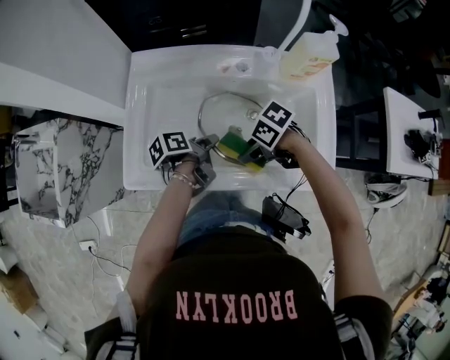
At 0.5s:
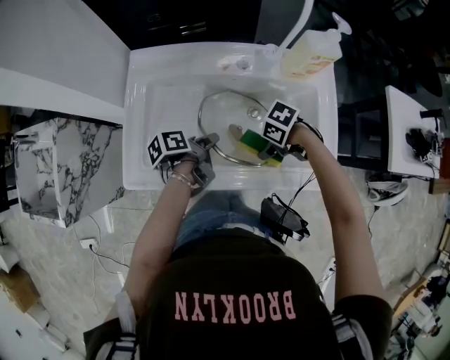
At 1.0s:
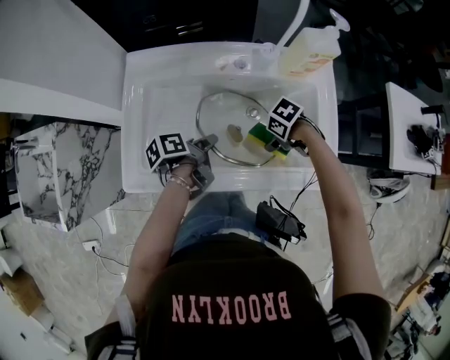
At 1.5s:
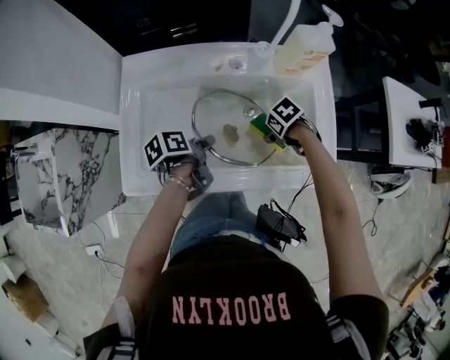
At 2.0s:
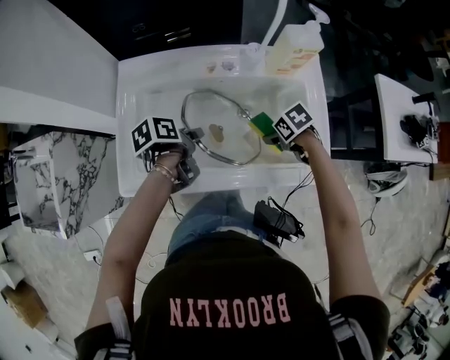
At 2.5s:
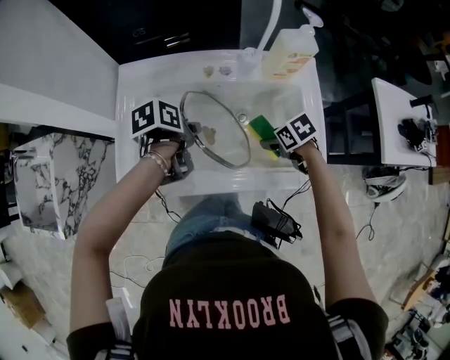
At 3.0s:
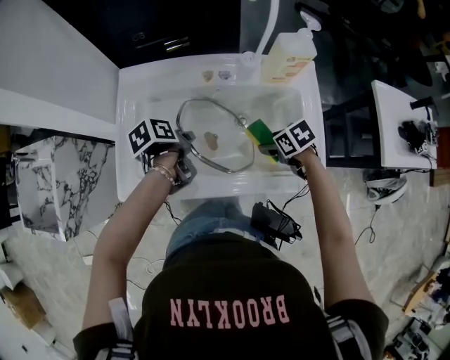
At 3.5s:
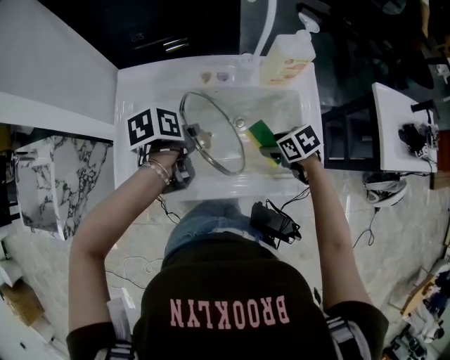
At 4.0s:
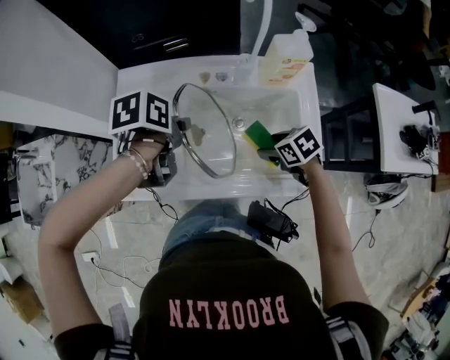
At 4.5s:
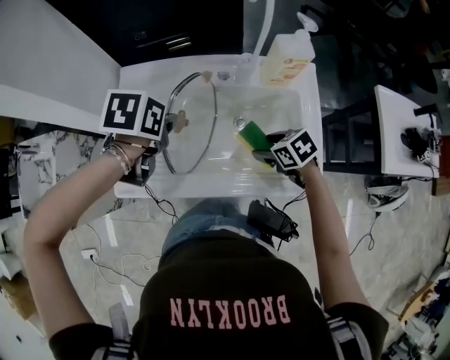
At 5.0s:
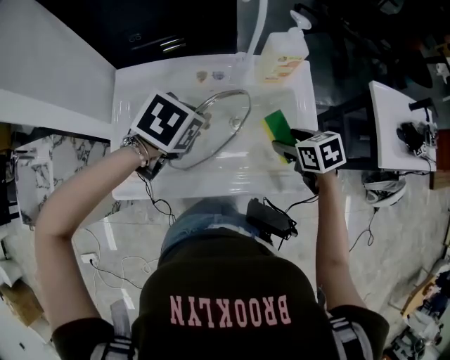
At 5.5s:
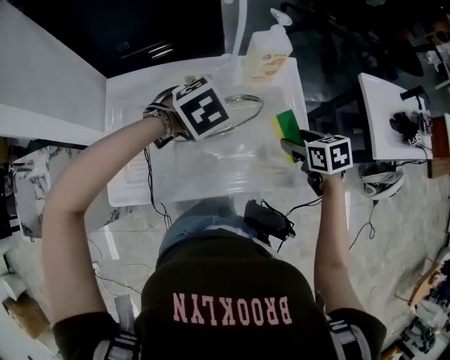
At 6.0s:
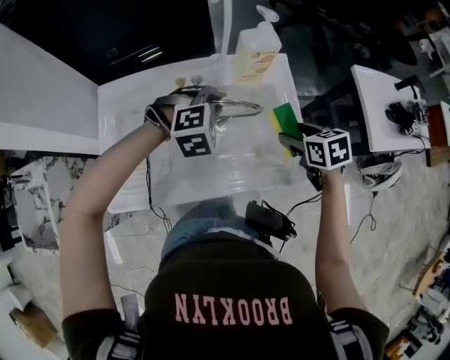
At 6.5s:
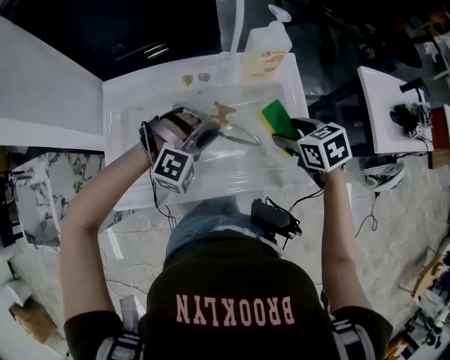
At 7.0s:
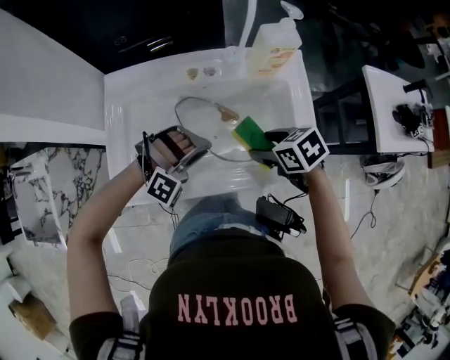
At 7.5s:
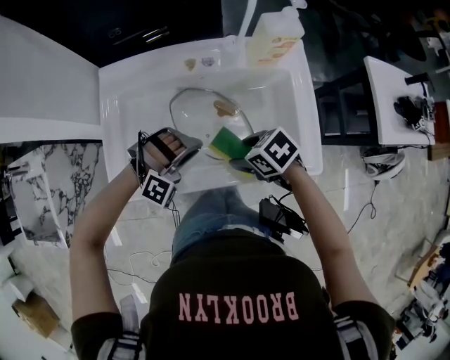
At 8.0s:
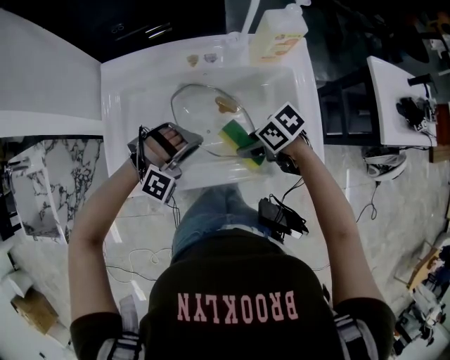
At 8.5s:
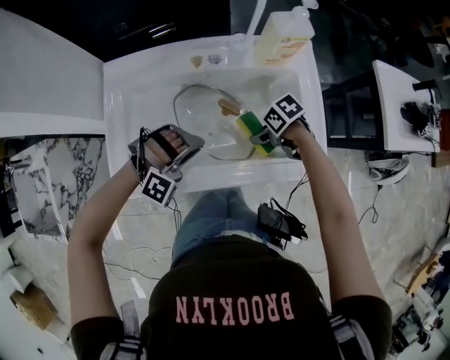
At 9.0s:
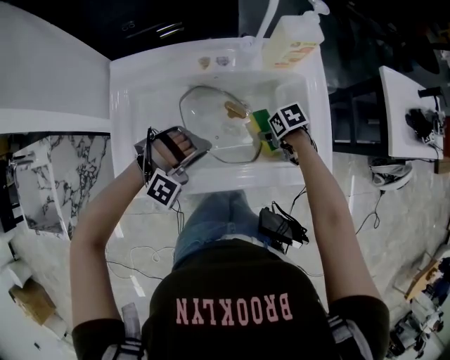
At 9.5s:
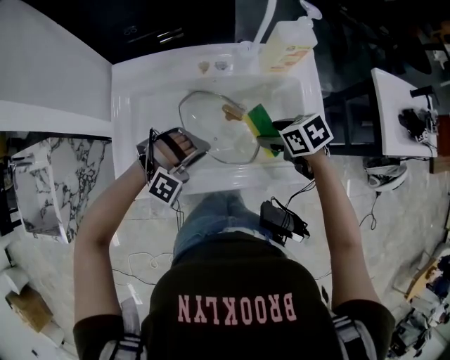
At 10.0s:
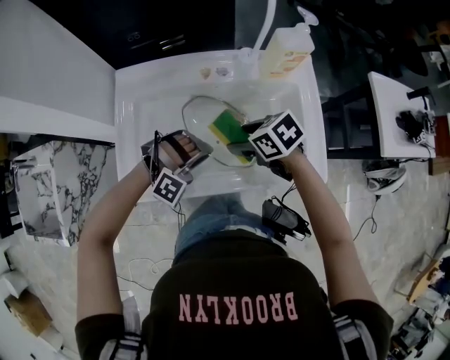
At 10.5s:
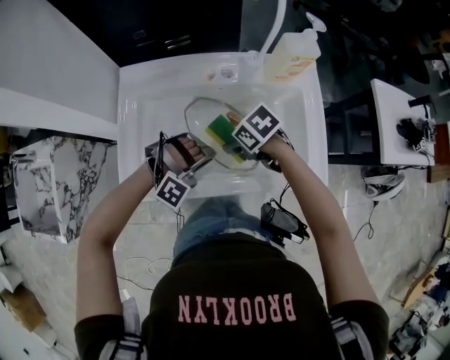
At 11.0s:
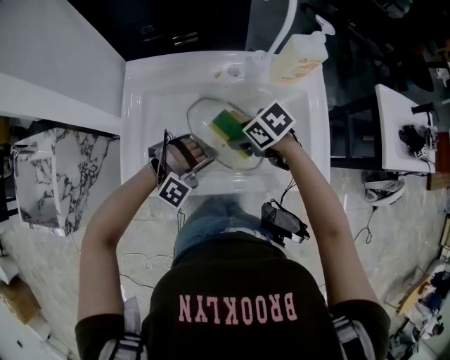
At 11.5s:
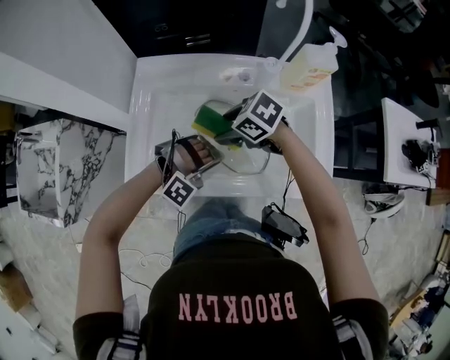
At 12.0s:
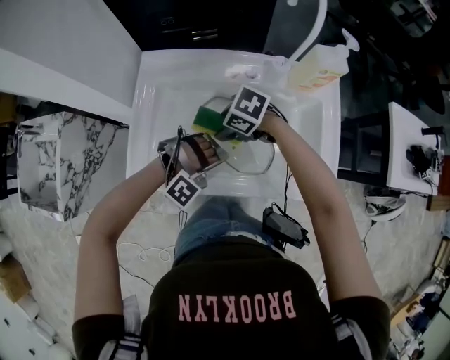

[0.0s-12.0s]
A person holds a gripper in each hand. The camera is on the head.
0.0s to 2.0s: The right gripper moves some 15 cm, and changes its angle by about 30 degrees.
2.0s to 4.0s: The right gripper moves upward, approximately 5 cm.
4.0s to 6.0s: The right gripper changes place by roughly 15 cm, and changes its angle by some 30 degrees.
6.0s to 8.0s: The right gripper ends up roughly 20 cm from where it was, and rotates some 40 degrees.
8.0s to 10.0s: The right gripper moves roughly 10 cm downward and comes back.
10.0s to 12.0s: The right gripper swings up and down, approximately 5 cm each way, with 2 reversals, and turns by approximately 40 degrees.

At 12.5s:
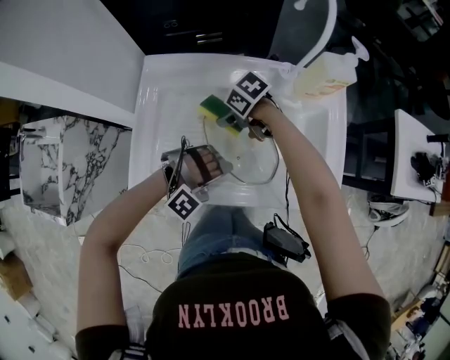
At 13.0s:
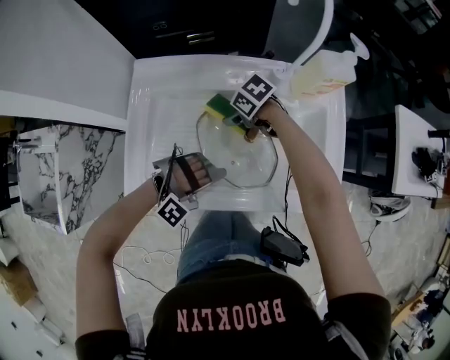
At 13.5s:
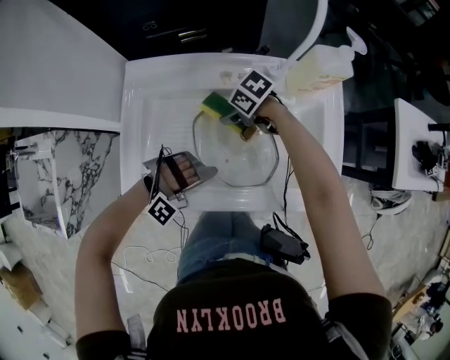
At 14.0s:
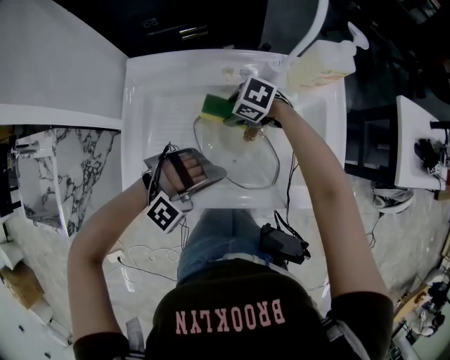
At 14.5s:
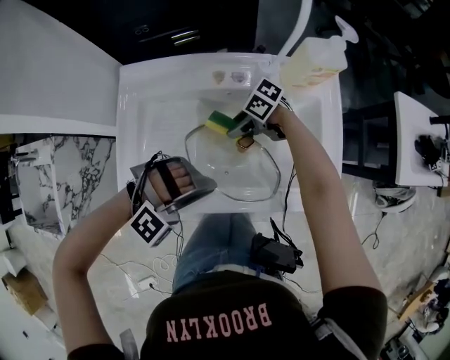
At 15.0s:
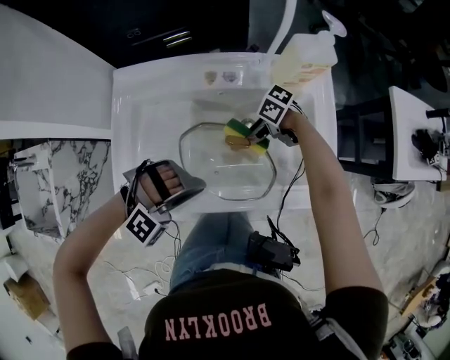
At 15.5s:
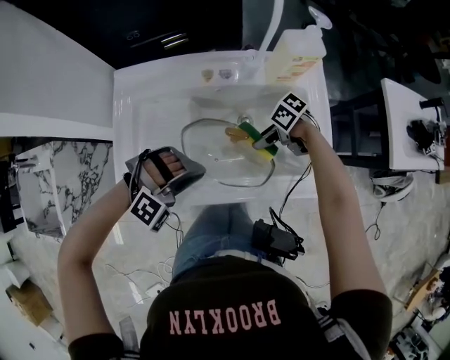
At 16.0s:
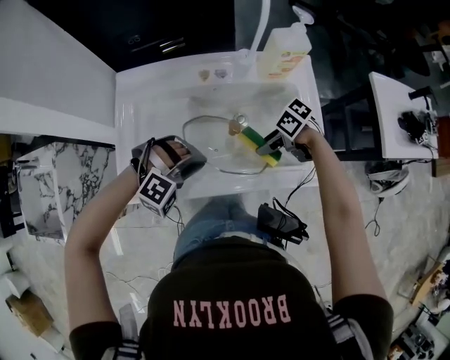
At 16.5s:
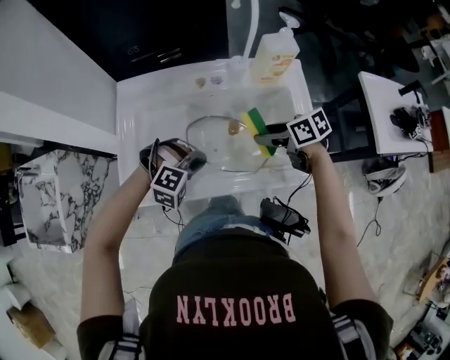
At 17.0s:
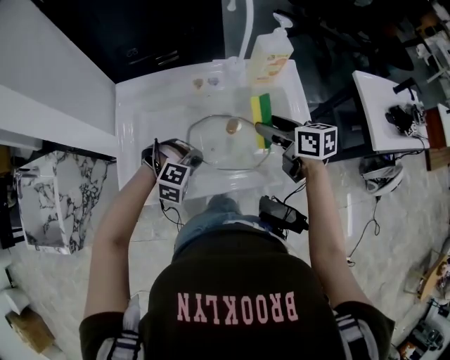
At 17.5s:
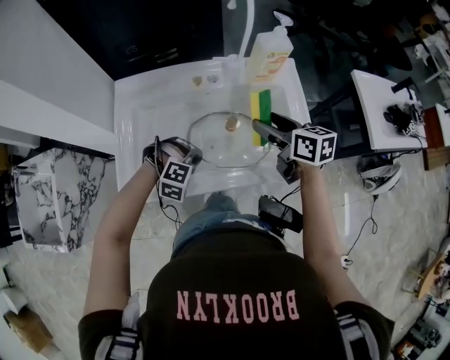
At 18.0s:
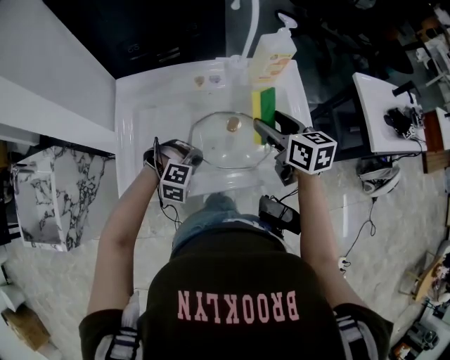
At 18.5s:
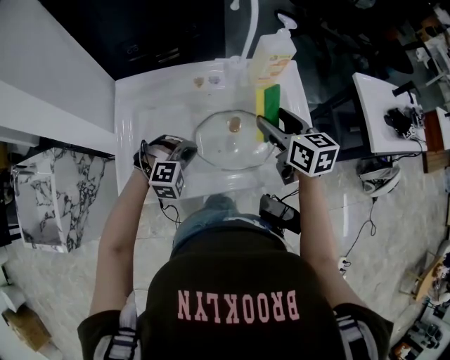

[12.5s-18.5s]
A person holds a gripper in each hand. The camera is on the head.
12.5s to 14.5s: The right gripper ends up about 10 cm from where it was.
14.5s to 16.5s: The right gripper changes place by roughly 20 cm, and swivels roughly 40 degrees.
16.5s to 18.5s: The right gripper travels upward by some 10 cm, and turns by some 40 degrees.

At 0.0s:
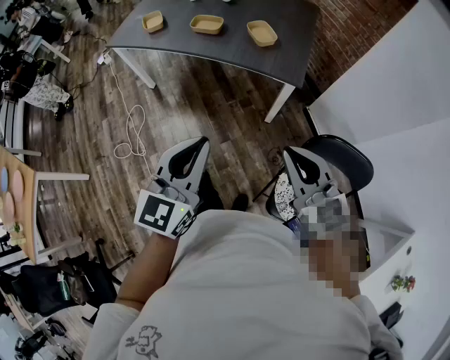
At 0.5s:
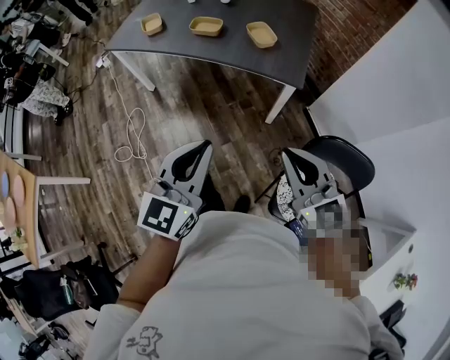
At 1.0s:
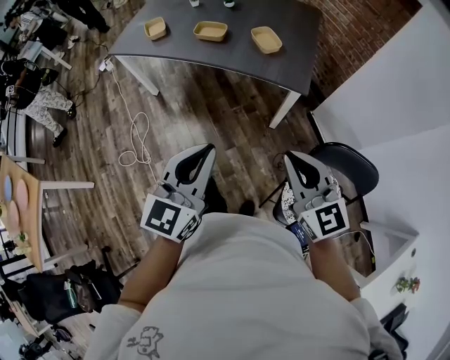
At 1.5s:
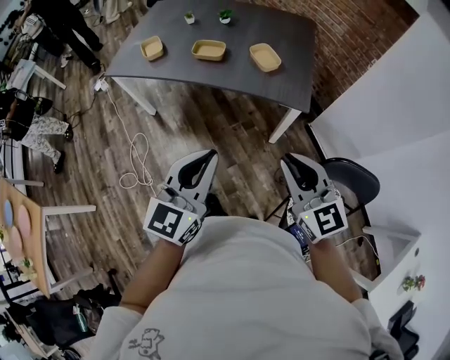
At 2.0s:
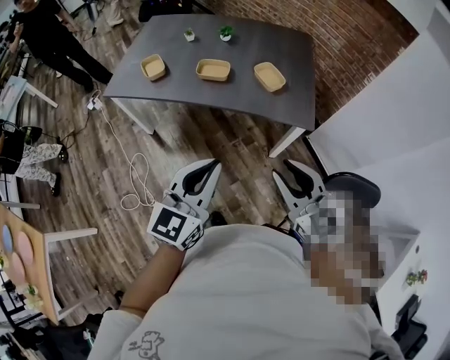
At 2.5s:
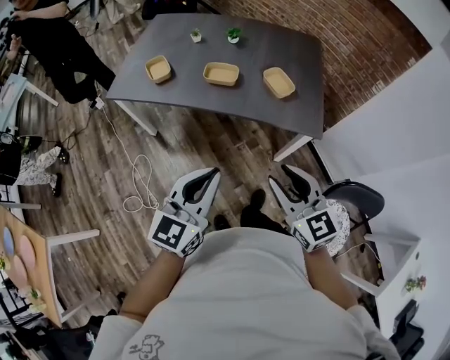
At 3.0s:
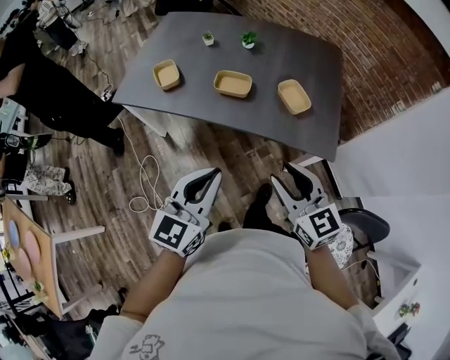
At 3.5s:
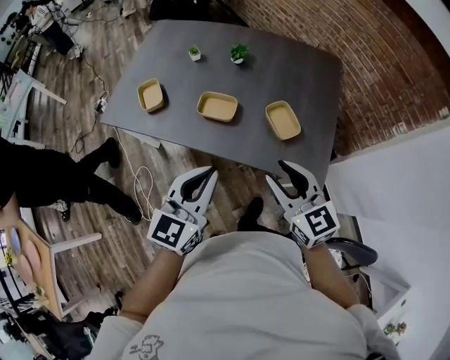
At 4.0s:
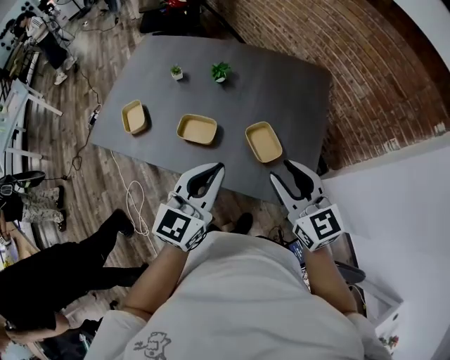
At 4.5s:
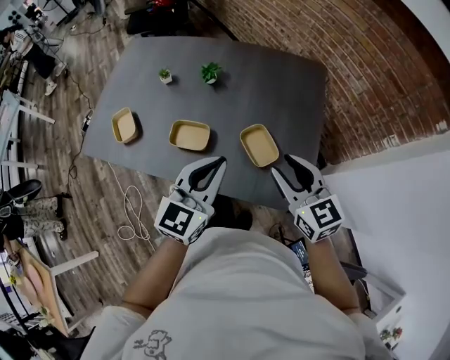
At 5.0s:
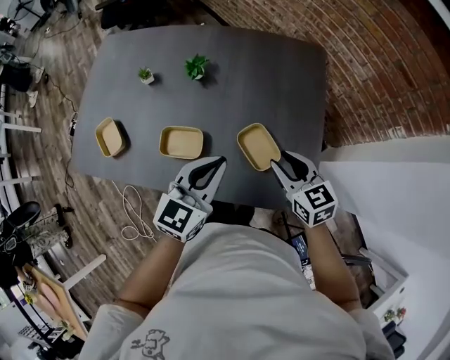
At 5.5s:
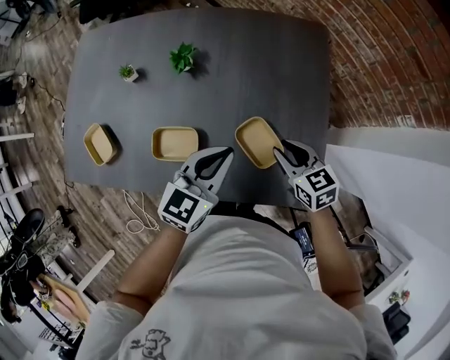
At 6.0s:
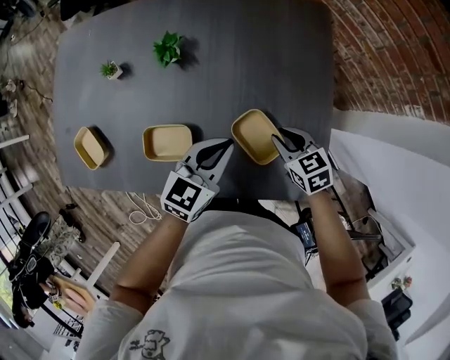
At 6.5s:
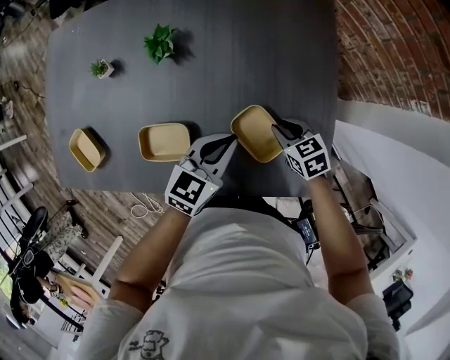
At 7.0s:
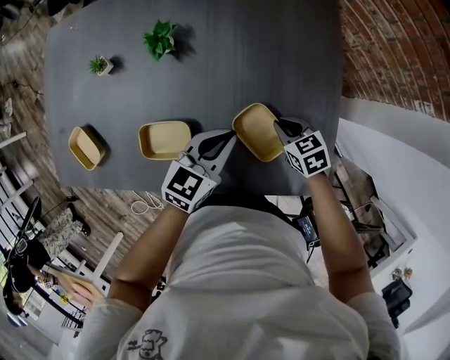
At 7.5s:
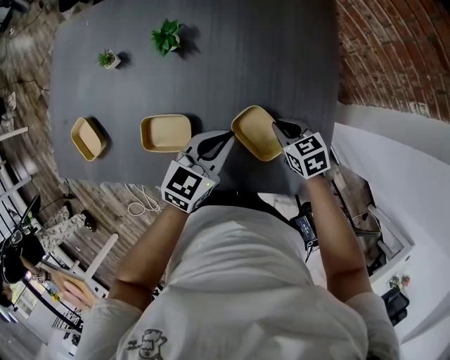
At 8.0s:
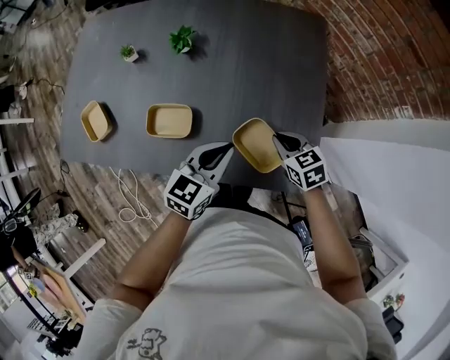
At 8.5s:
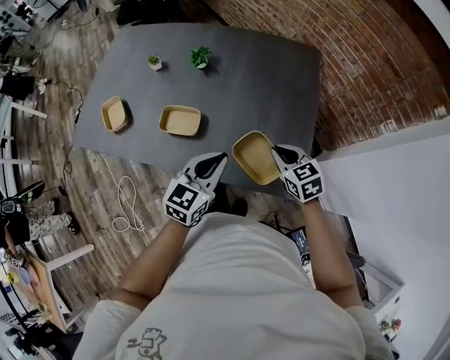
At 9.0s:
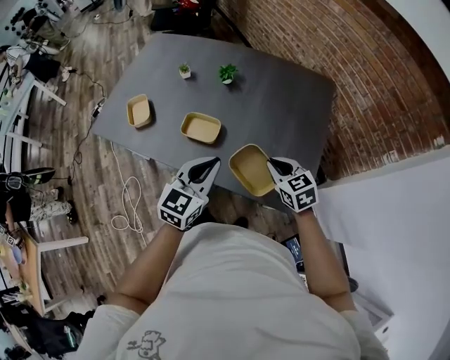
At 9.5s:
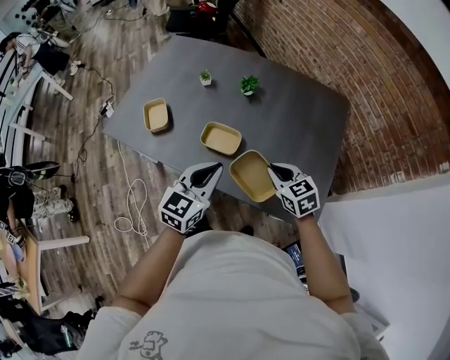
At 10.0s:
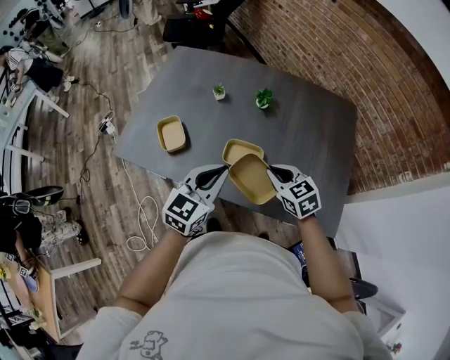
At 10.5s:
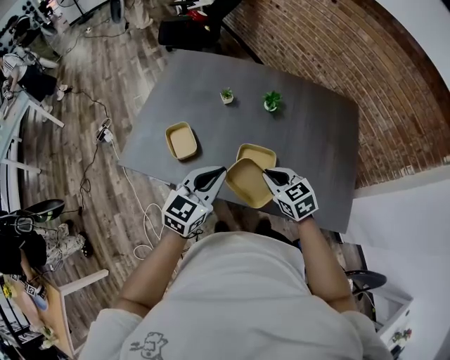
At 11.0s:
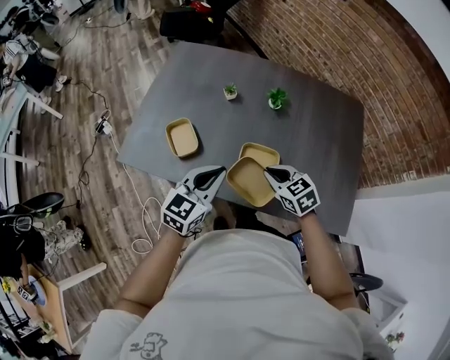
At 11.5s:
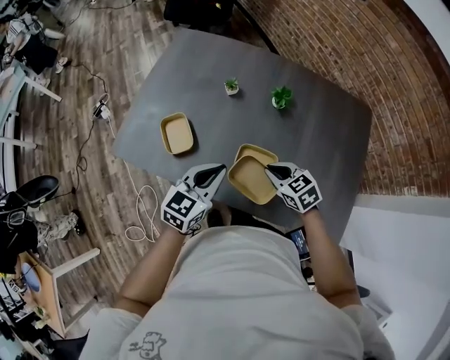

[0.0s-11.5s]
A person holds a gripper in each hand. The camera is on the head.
0.0s to 2.0s: The left gripper shifts roughly 20 cm forward and to the left; the right gripper heads to the left and forward, covering roughly 20 cm, and opens up.
2.0s to 4.0s: Both grippers travel together forward, some 35 cm.
4.0s to 6.0s: Both grippers move downward and forward, about 30 cm. The left gripper rotates approximately 30 degrees. The right gripper points its fingers some 40 degrees further downward.
7.5s to 9.5s: The right gripper travels upward, to the left and backward by about 25 cm, and turns by about 30 degrees, while the left gripper travels to the left, backward and upward by some 25 cm, and turns by about 30 degrees.
9.5s to 11.5s: The grippers both shift to the left and forward by about 20 cm.
